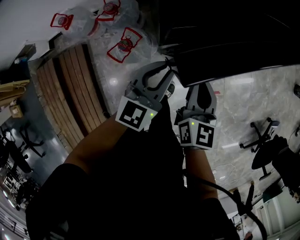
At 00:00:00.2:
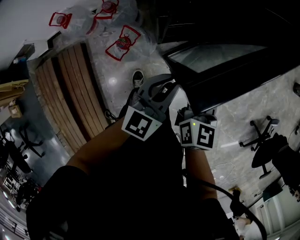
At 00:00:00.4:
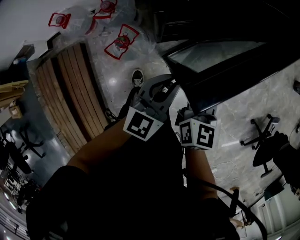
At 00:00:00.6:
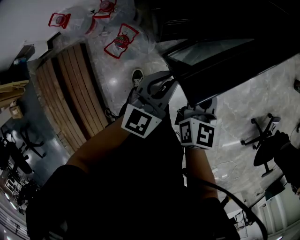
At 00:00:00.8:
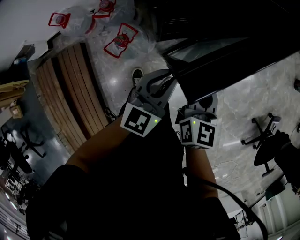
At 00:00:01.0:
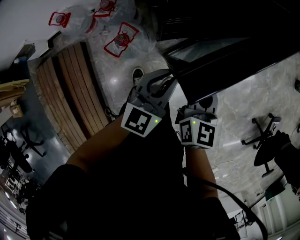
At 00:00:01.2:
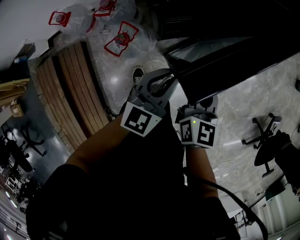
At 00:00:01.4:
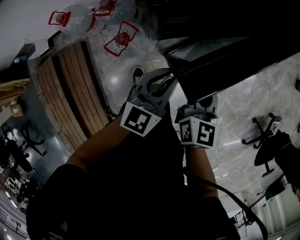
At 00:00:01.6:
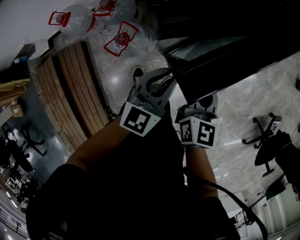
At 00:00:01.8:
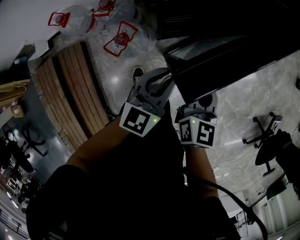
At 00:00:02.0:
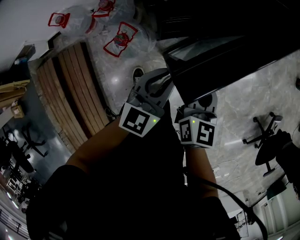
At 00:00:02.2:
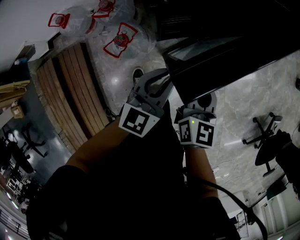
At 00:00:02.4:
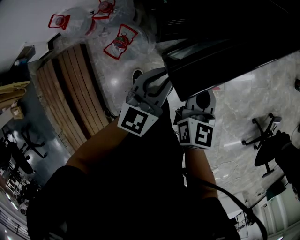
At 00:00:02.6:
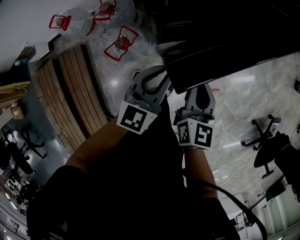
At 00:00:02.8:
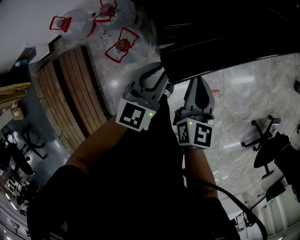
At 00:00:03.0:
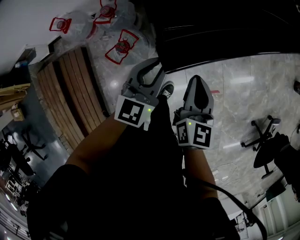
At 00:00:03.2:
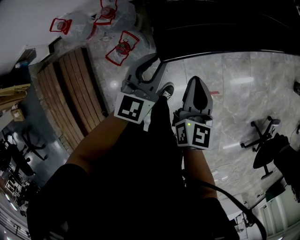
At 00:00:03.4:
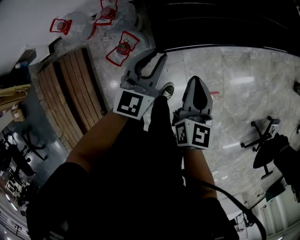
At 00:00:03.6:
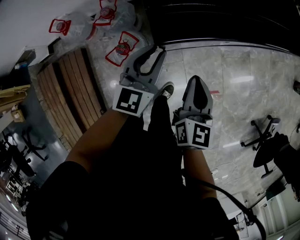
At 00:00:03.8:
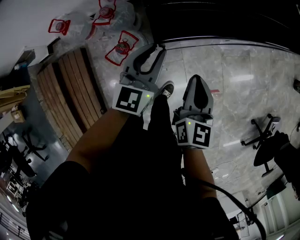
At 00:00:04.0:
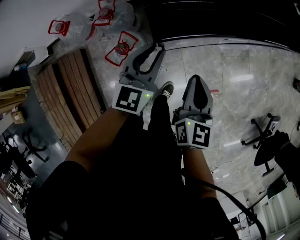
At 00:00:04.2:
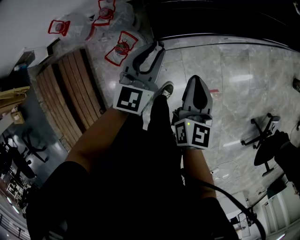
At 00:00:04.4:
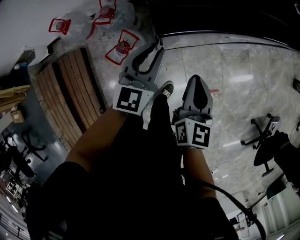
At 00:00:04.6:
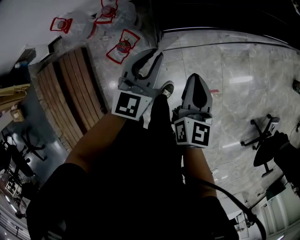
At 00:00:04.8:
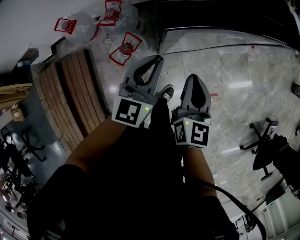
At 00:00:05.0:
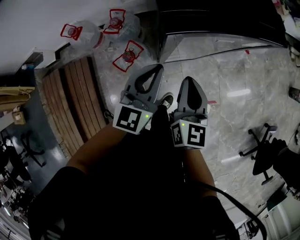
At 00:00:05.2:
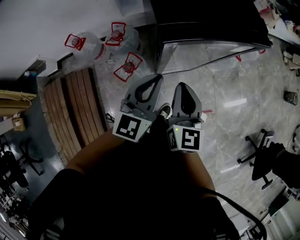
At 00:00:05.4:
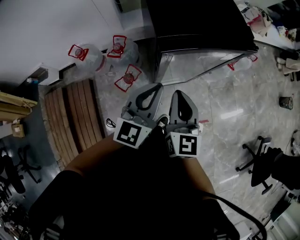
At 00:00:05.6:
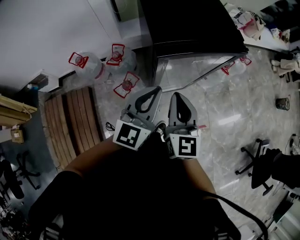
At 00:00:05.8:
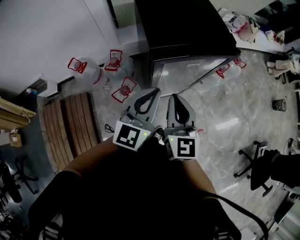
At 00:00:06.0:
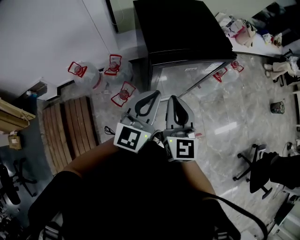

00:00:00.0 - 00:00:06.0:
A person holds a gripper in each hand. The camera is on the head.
00:00:00.0 - 00:00:01.6: The left gripper shifts by some 5 cm.
00:00:01.6 - 00:00:03.0: The left gripper is displaced to the left by some 5 cm.
00:00:03.0 - 00:00:04.4: There are only small adjustments of the grippers.
00:00:04.4 - 00:00:06.0: The right gripper travels upward by roughly 20 cm, and swivels approximately 30 degrees. Meanwhile the left gripper is displaced upward and backward by roughly 25 cm.

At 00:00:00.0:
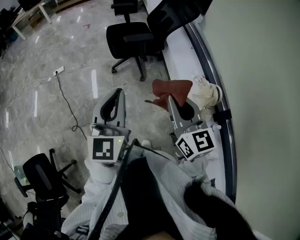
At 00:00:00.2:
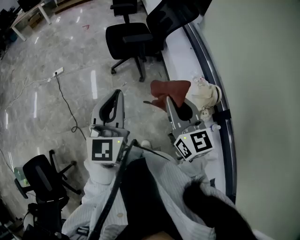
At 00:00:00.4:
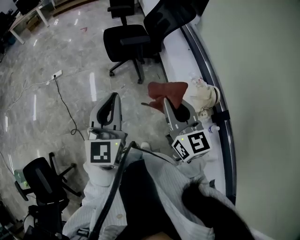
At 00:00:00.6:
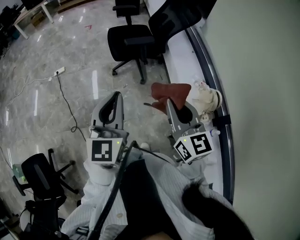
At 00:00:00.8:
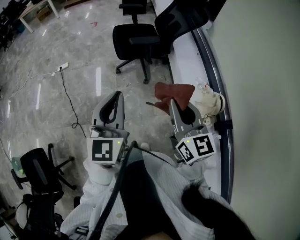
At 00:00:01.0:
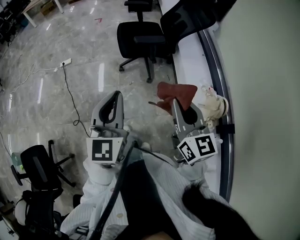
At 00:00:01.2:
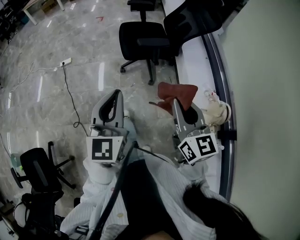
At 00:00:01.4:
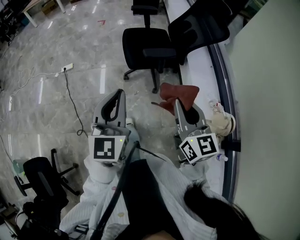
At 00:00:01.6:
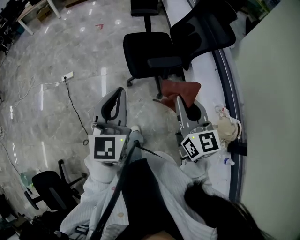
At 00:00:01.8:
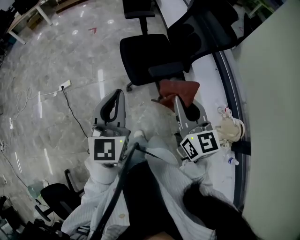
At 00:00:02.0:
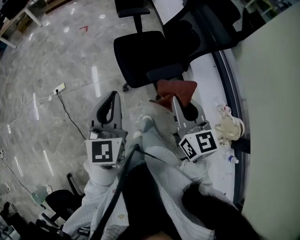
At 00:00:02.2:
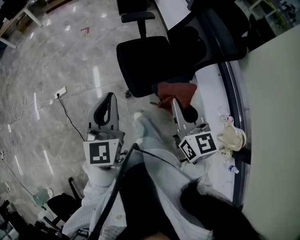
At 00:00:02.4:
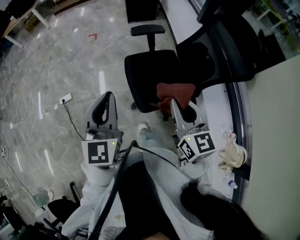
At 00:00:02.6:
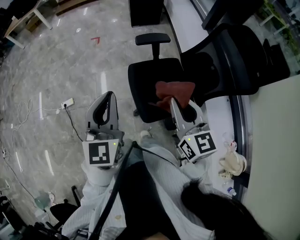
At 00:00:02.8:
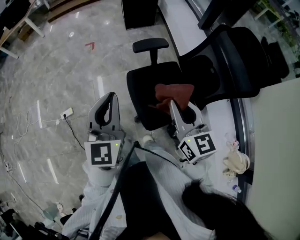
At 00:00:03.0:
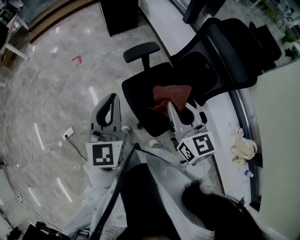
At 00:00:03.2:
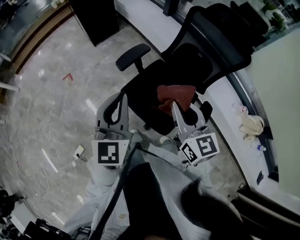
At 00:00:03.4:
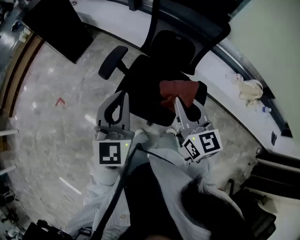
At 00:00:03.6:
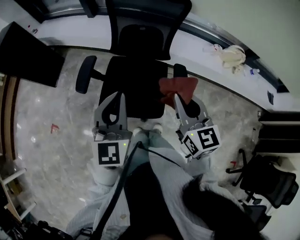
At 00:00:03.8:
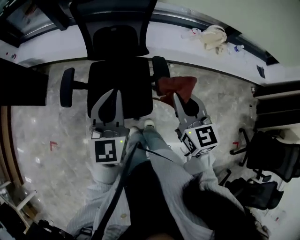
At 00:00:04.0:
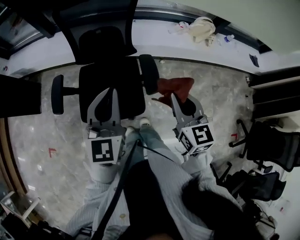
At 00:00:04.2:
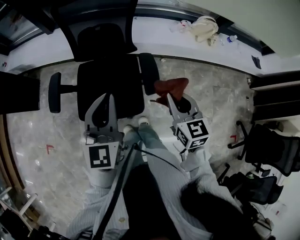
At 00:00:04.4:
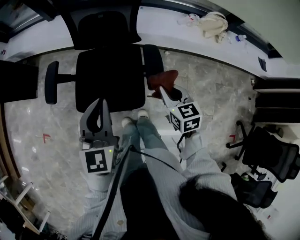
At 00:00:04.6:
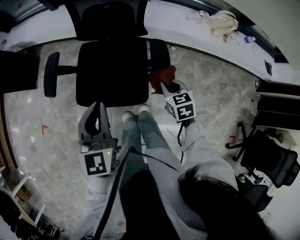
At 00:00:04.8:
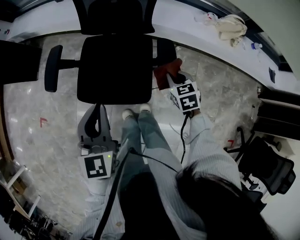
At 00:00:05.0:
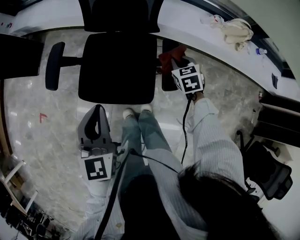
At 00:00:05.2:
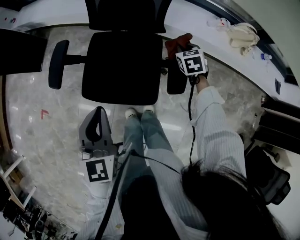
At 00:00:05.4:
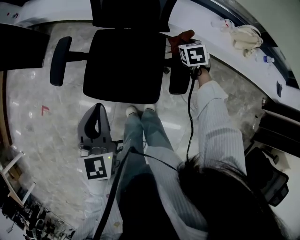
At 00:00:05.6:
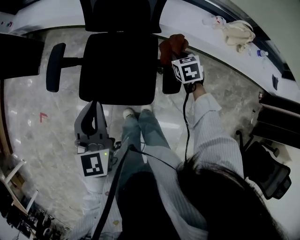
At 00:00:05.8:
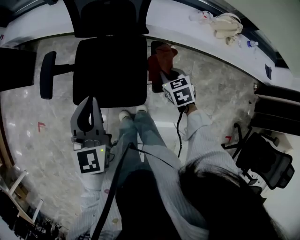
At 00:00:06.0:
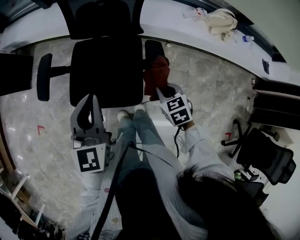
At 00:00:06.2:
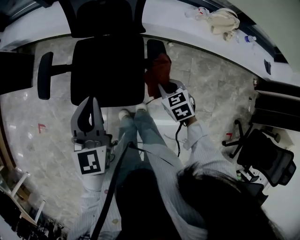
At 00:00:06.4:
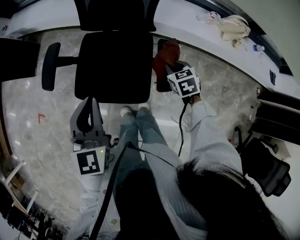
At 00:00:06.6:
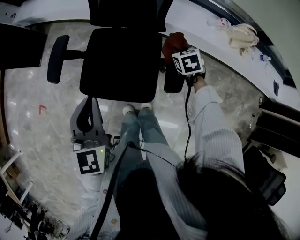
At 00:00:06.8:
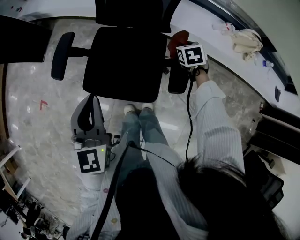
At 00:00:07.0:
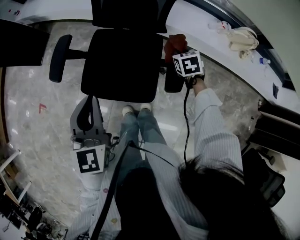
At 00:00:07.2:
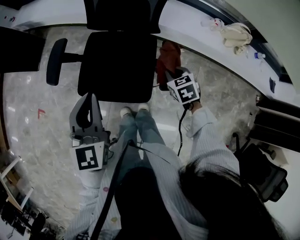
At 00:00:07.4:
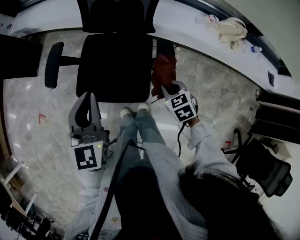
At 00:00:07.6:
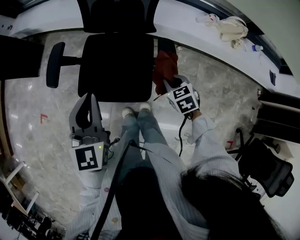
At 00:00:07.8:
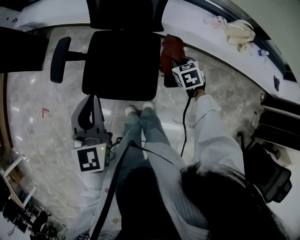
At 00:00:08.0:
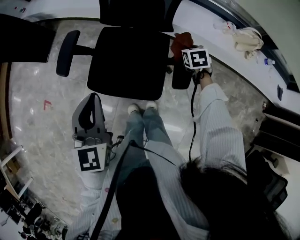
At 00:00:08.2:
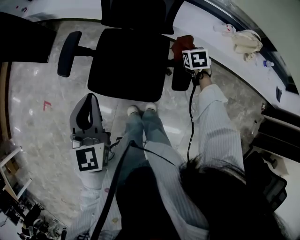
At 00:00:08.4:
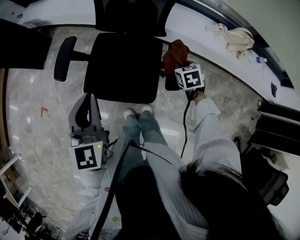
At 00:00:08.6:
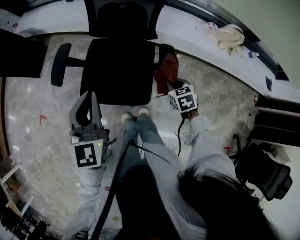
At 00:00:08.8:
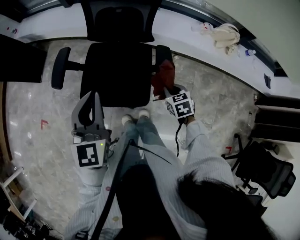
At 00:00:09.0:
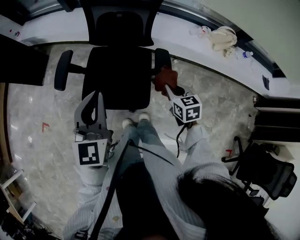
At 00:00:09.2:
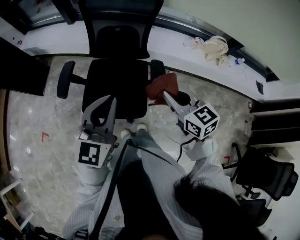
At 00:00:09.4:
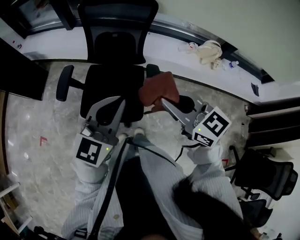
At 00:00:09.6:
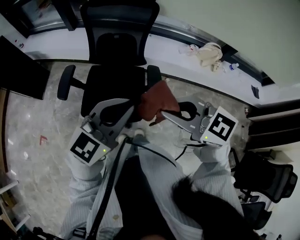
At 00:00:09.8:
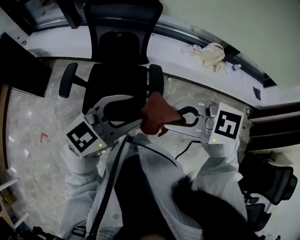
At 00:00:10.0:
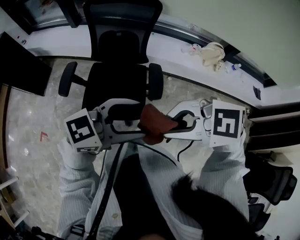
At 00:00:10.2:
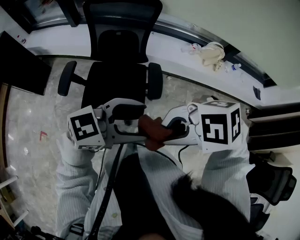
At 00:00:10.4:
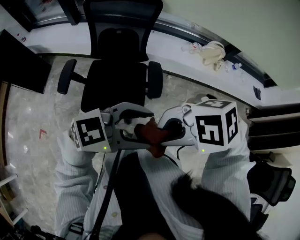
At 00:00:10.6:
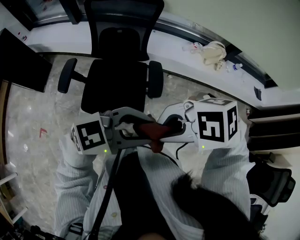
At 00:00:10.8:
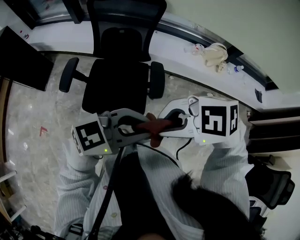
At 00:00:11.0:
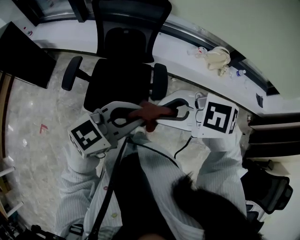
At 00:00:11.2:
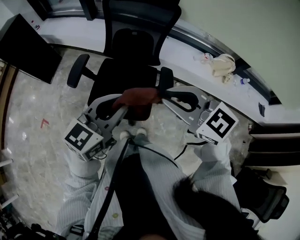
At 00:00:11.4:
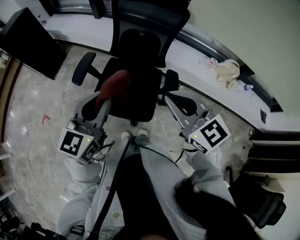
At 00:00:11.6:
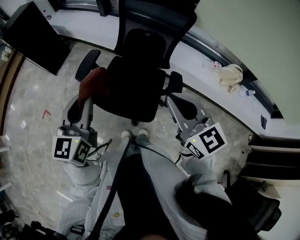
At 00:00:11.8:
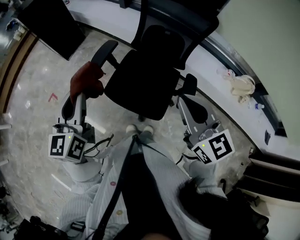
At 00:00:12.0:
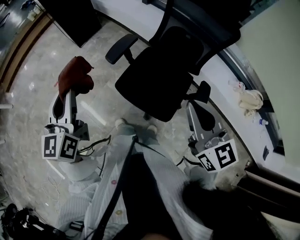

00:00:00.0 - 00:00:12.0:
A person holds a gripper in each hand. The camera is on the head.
00:00:00.0 - 00:00:01.6: The grippers both shift forward by approximately 30 cm.
00:00:01.6 - 00:00:03.0: Both grippers are carried forward, some 60 cm.
00:00:03.0 - 00:00:04.4: The left gripper shifts by roughly 20 cm, and turns by roughly 60 degrees; the right gripper moves about 30 cm, and rotates about 60 degrees.
00:00:04.4 - 00:00:06.0: The left gripper reaches approximately 10 cm to the left, then returns. Meanwhile the right gripper moves downward, approximately 10 cm, moves roughly 25 cm forward and comes back, and rotates some 20 degrees.
00:00:06.0 - 00:00:07.6: The right gripper moves approximately 20 cm forward and comes back.
00:00:07.6 - 00:00:09.0: Both grippers travel together upward, roughly 5 cm. The right gripper reaches some 15 cm forward, then returns, and swivels approximately 20 degrees.
00:00:09.0 - 00:00:10.4: The right gripper is displaced upward by approximately 30 cm, and rotates some 90 degrees, while the left gripper moves roughly 25 cm, turns by roughly 80 degrees, and opens up.
00:00:10.4 - 00:00:12.0: The left gripper ends up about 40 cm from where it was, swivels about 110 degrees, and closes its fingers, while the right gripper moves approximately 20 cm, and tips its fingers upward by some 40 degrees.

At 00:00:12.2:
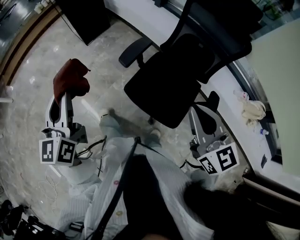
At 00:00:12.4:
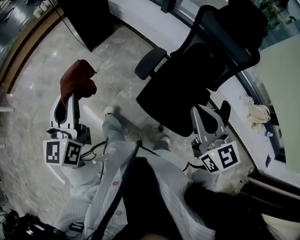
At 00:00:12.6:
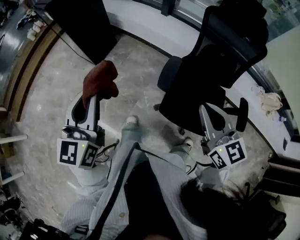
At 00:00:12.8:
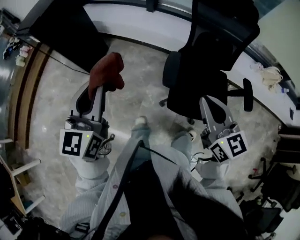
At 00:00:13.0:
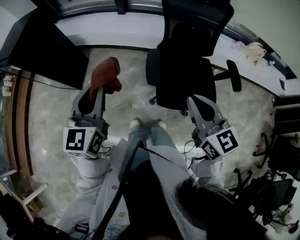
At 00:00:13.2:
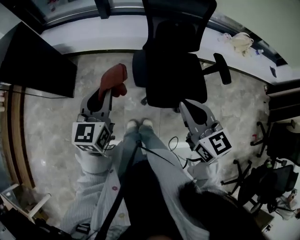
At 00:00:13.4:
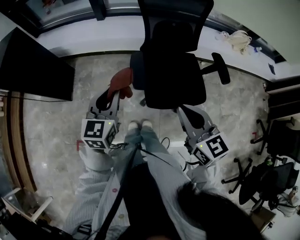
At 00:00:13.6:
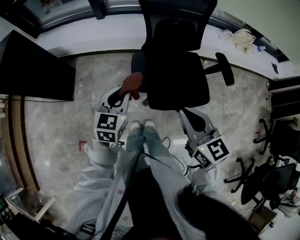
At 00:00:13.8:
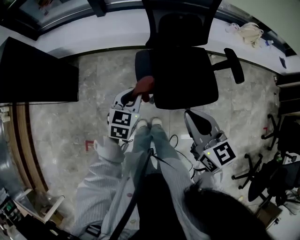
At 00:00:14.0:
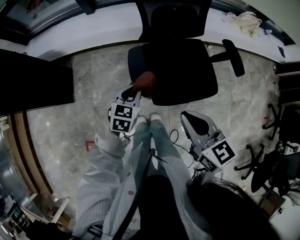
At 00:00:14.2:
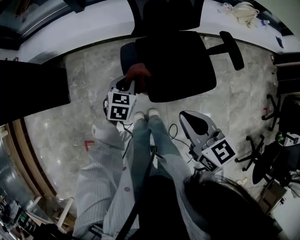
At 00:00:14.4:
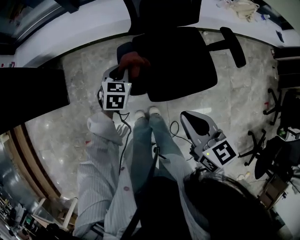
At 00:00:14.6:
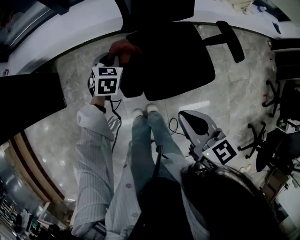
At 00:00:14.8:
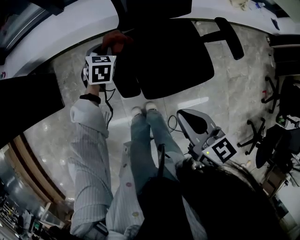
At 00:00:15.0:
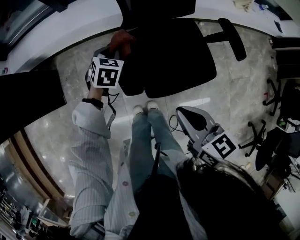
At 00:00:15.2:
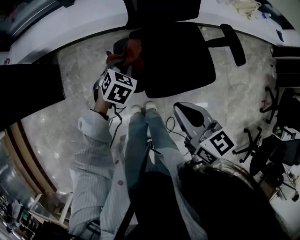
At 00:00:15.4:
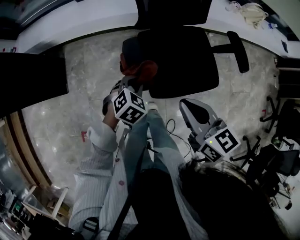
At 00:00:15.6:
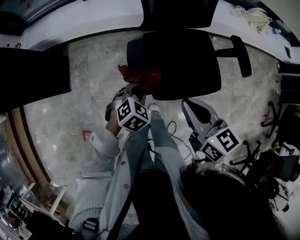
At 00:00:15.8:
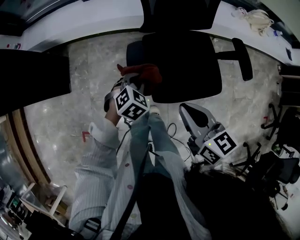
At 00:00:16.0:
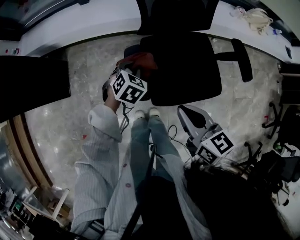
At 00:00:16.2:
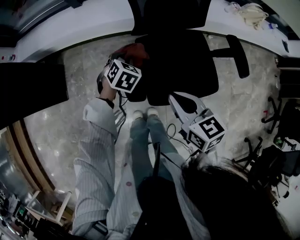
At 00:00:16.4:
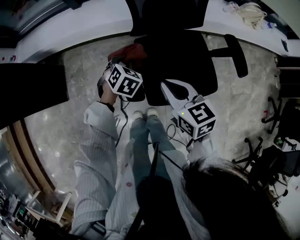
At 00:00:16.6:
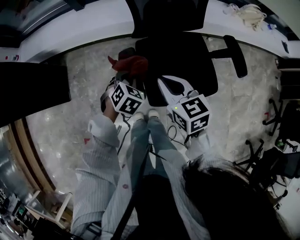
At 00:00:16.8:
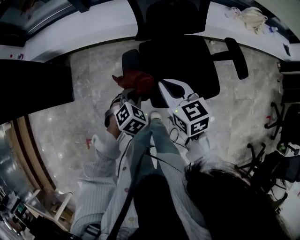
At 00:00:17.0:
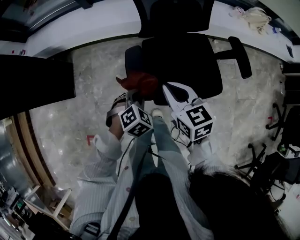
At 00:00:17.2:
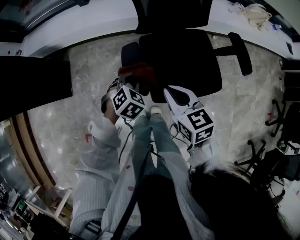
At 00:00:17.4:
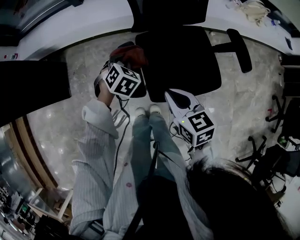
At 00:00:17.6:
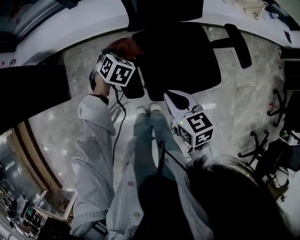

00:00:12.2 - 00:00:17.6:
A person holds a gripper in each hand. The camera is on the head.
00:00:12.2 - 00:00:13.6: The right gripper moves about 25 cm, and rotates approximately 40 degrees, while the left gripper changes place by approximately 30 cm, and swivels approximately 70 degrees.
00:00:13.6 - 00:00:15.0: The right gripper shifts approximately 15 cm downward. The left gripper is displaced forward and downward by about 30 cm, and turns by approximately 30 degrees.
00:00:15.0 - 00:00:16.2: The right gripper goes about 10 cm forward. The left gripper reaches approximately 20 cm backward, then returns.
00:00:16.2 - 00:00:17.6: The left gripper moves roughly 20 cm backward and comes back. The right gripper moves roughly 5 cm.
